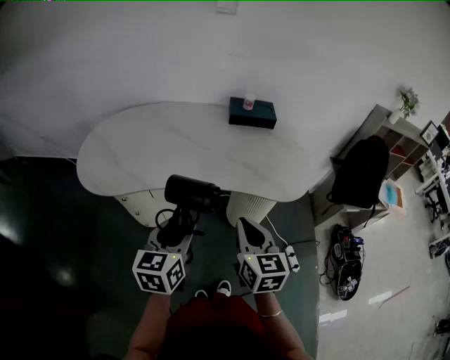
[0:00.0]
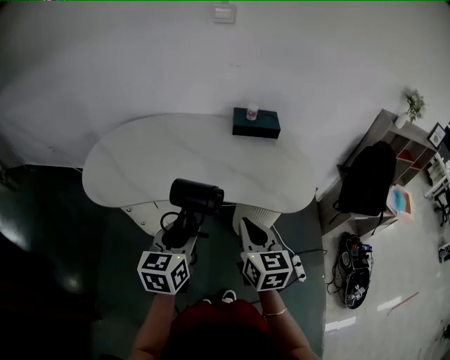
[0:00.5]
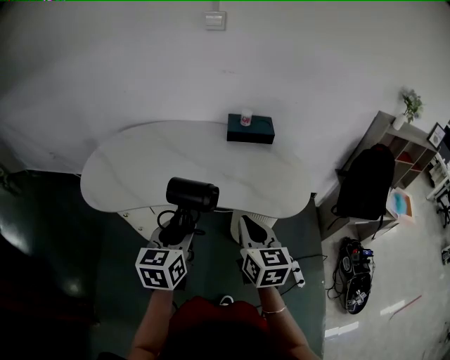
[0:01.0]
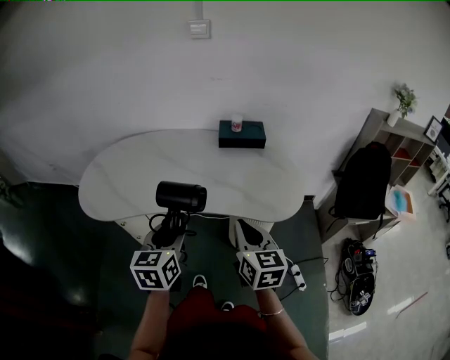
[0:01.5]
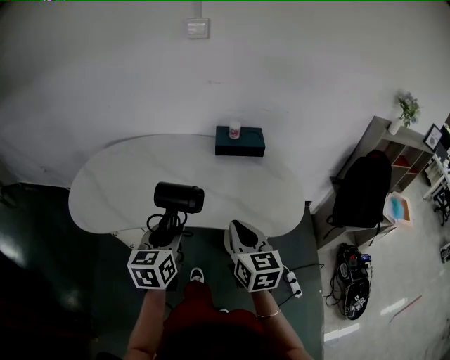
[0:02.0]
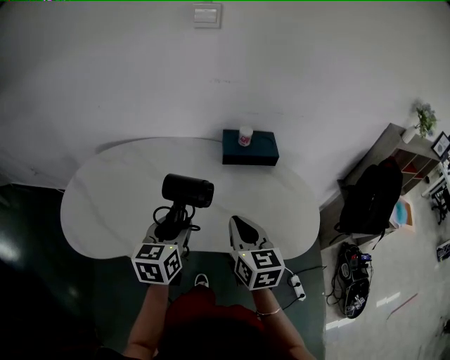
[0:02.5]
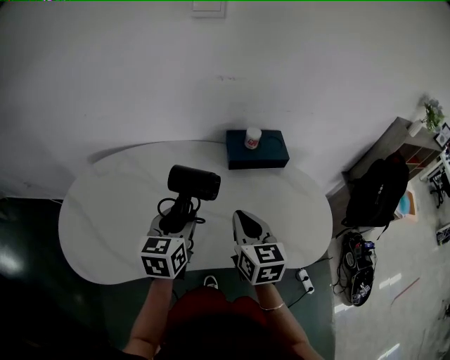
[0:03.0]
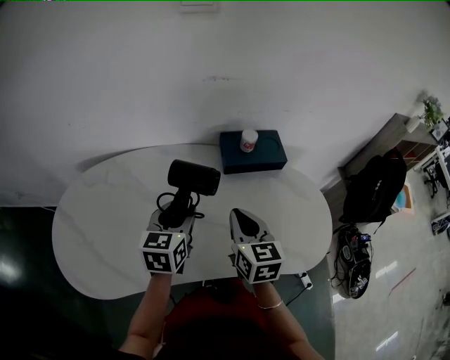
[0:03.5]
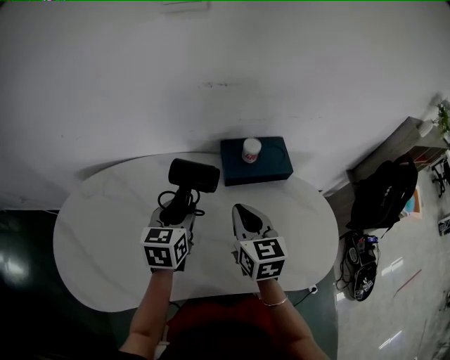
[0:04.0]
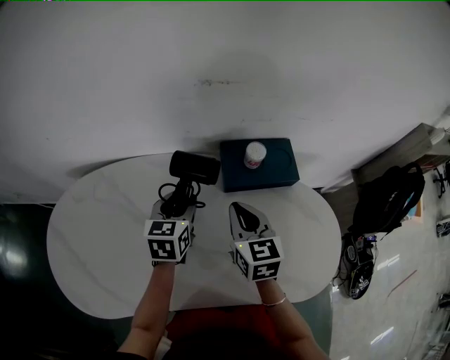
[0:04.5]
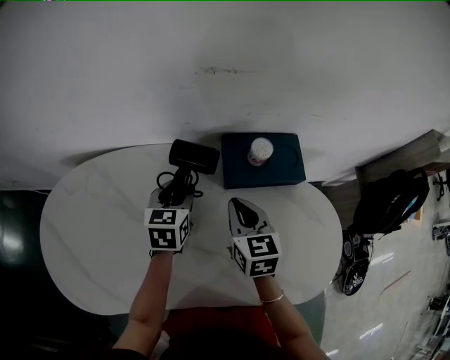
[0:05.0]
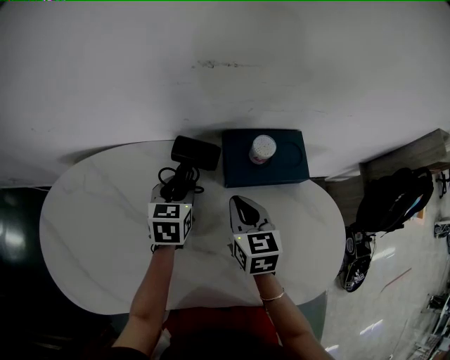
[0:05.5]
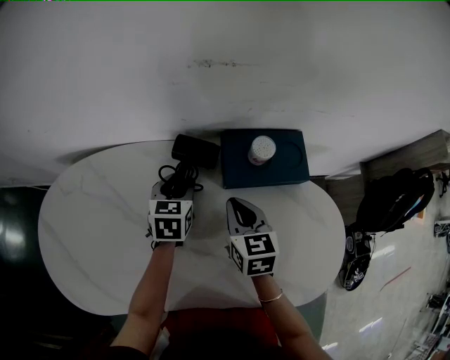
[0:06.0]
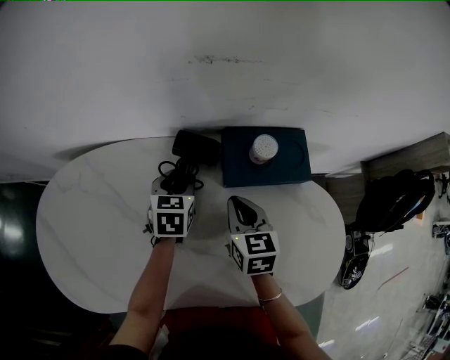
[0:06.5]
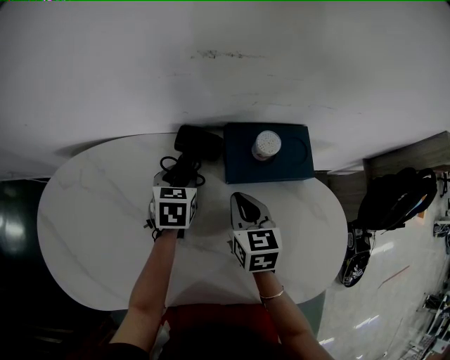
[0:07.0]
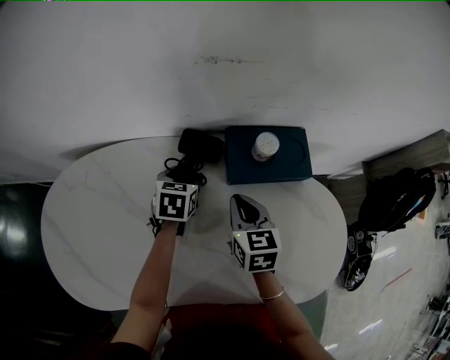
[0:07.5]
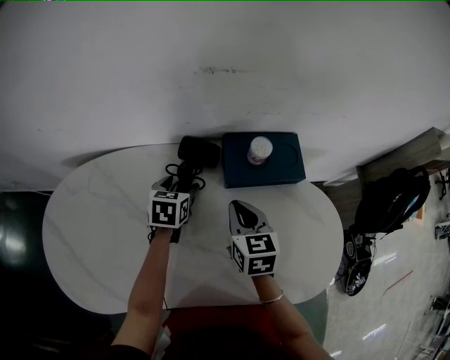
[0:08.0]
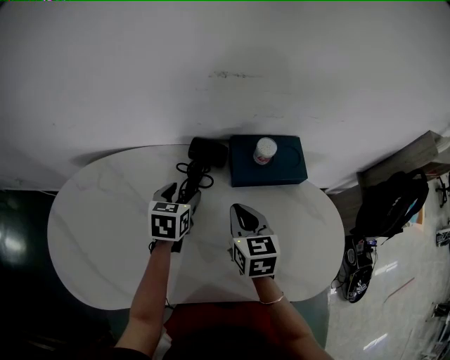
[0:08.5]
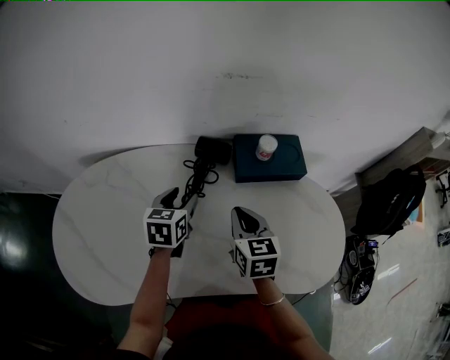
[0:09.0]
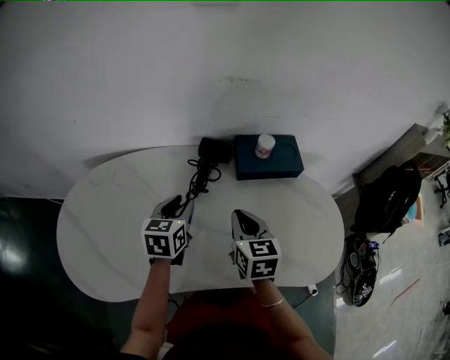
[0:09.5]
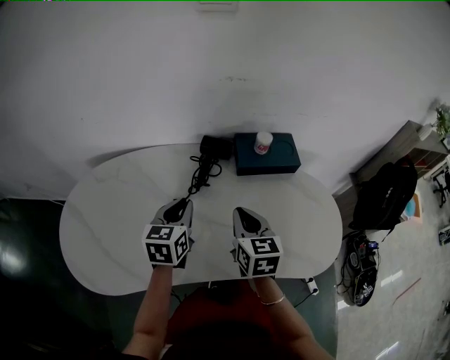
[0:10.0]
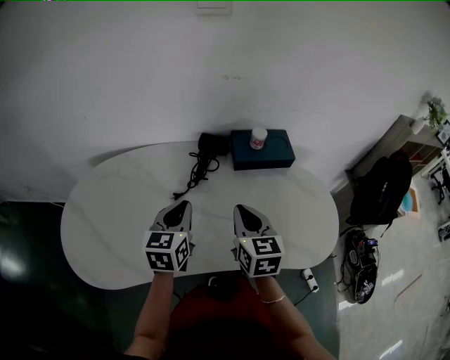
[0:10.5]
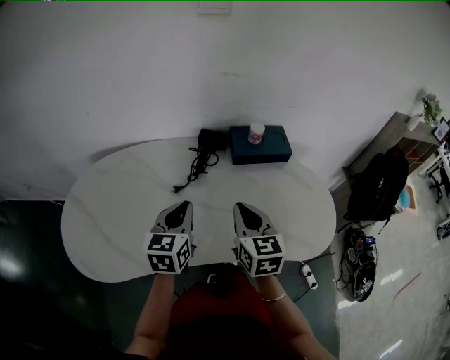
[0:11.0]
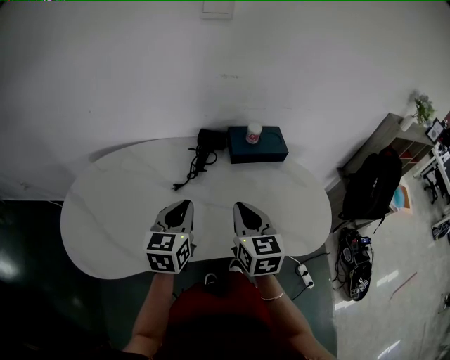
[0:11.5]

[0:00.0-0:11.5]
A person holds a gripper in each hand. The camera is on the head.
0:00.0 to 0:02.0: The grippers both shift forward and to the right by some 15 cm.
0:02.0 to 0:04.0: Both grippers travel together forward, roughly 35 cm.
0:04.0 to 0:06.0: The left gripper travels forward and downward by some 15 cm. Meanwhile the right gripper goes about 15 cm downward and forward.
0:06.0 to 0:07.5: The grippers stay close to where they were, moving slightly.
0:07.5 to 0:09.5: Both grippers move backward and upward, roughly 15 cm. The left gripper closes.
0:09.5 to 0:11.5: The two grippers go some 15 cm backward and upward. The left gripper closes up.

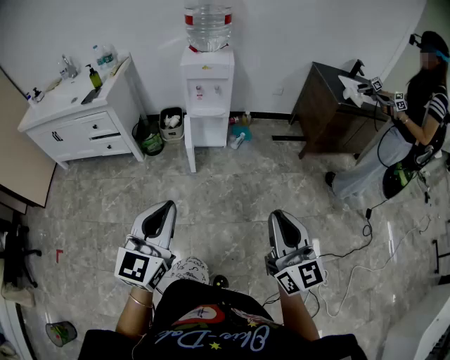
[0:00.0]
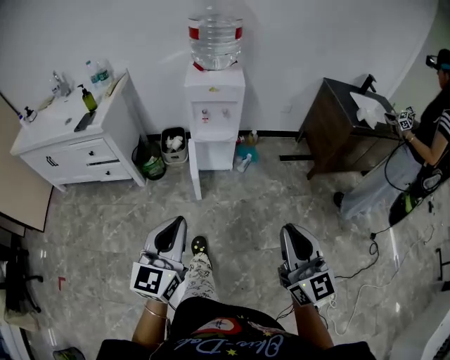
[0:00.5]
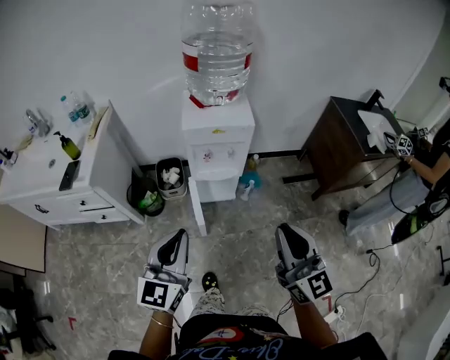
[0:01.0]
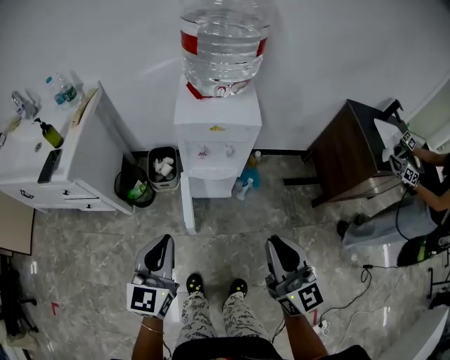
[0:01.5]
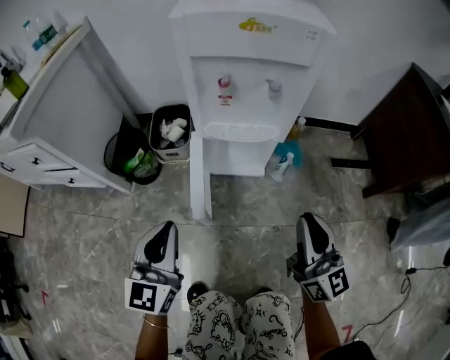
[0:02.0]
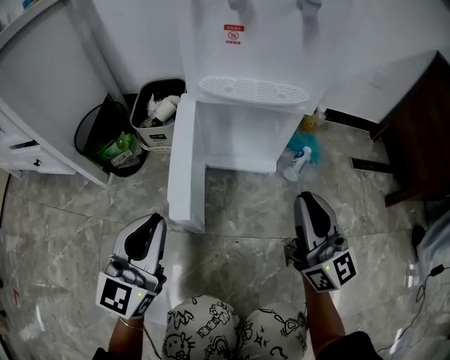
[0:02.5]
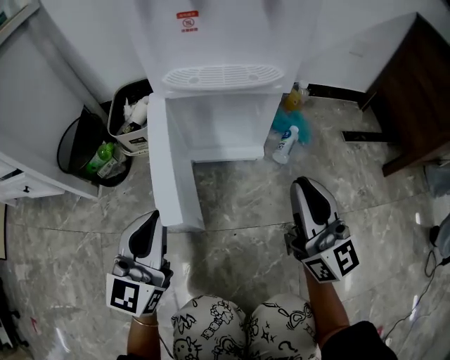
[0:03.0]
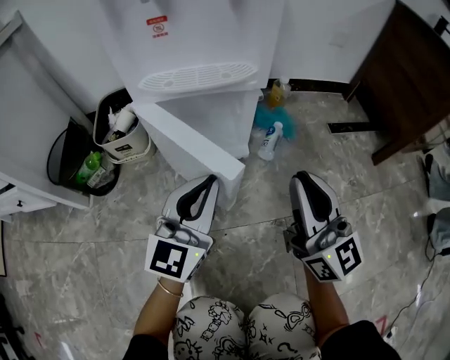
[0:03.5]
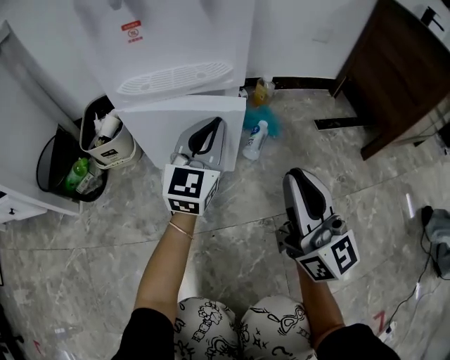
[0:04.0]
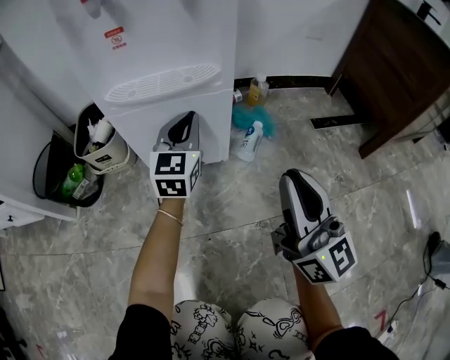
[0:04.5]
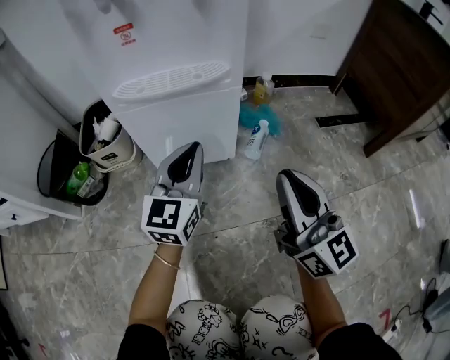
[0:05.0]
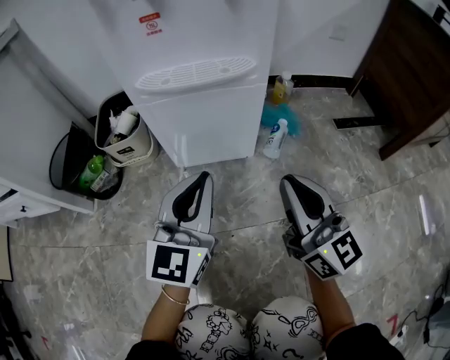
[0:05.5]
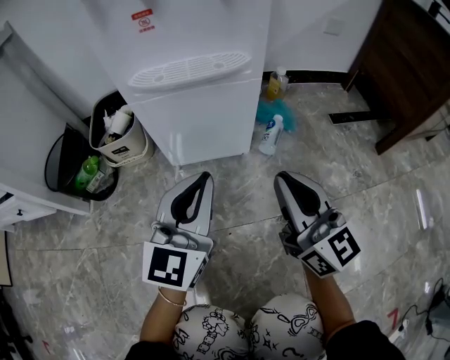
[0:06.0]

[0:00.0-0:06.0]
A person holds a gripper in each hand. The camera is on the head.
0:00.0 to 0:02.0: Both grippers are carried forward, about 60 cm. The two grippers go approximately 40 cm downward.
0:02.0 to 0:04.0: The left gripper heads to the right, forward and downward, covering some 40 cm, and swivels approximately 20 degrees; the right gripper shifts roughly 20 cm downward.
0:04.0 to 0:06.0: The left gripper moves backward and to the left, approximately 15 cm, while the right gripper moves to the left, approximately 5 cm.

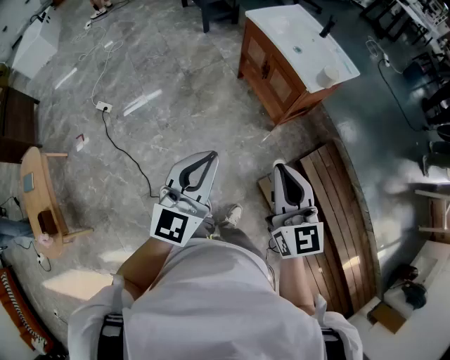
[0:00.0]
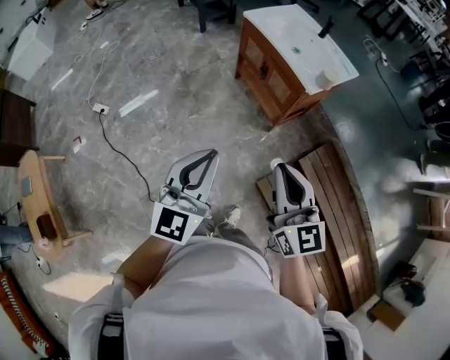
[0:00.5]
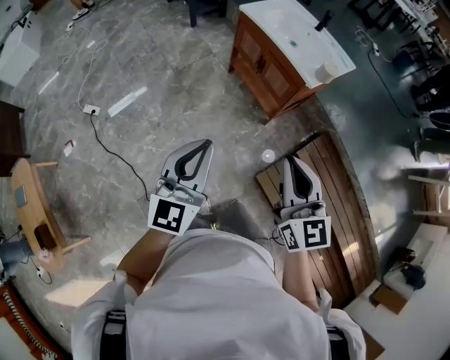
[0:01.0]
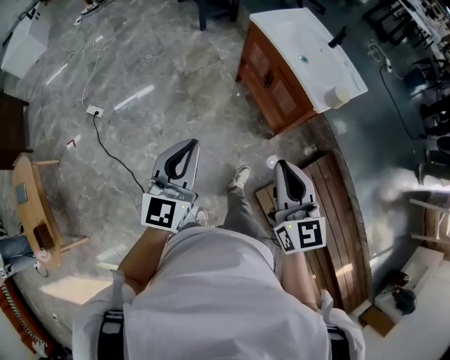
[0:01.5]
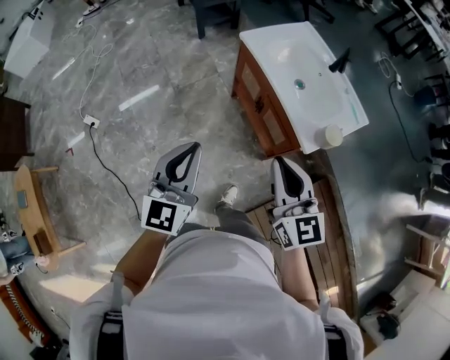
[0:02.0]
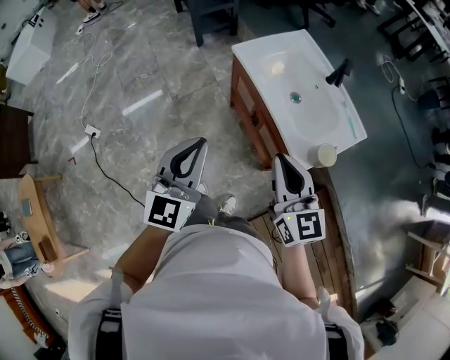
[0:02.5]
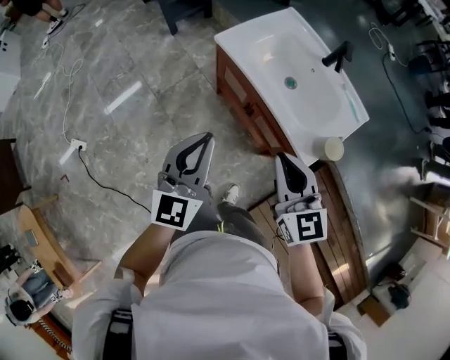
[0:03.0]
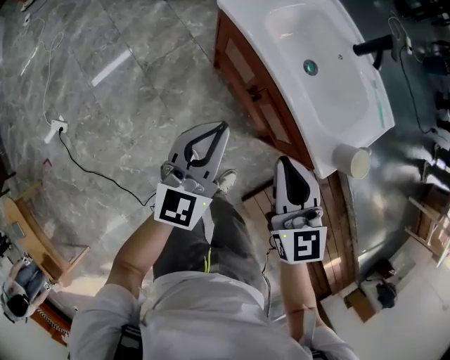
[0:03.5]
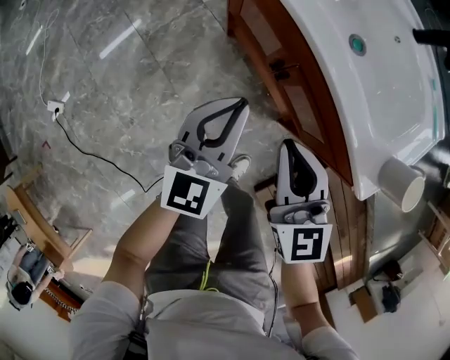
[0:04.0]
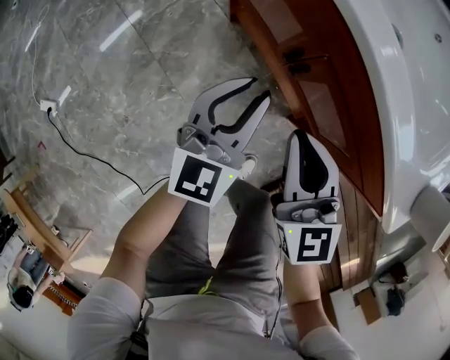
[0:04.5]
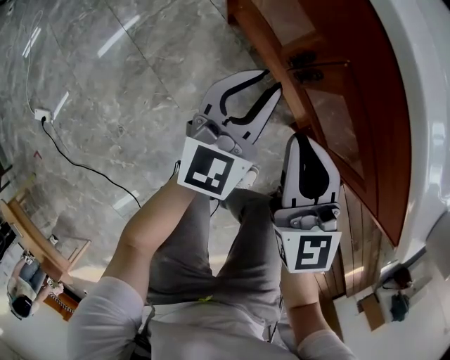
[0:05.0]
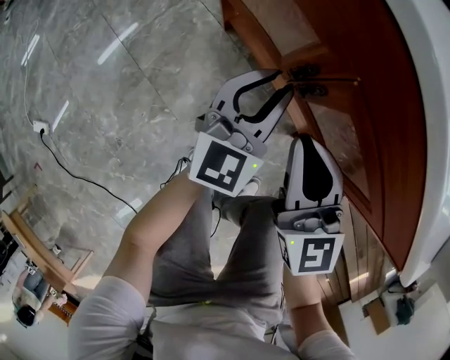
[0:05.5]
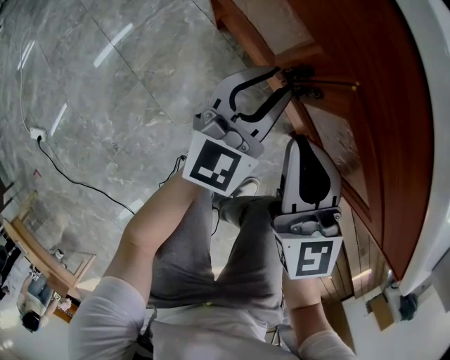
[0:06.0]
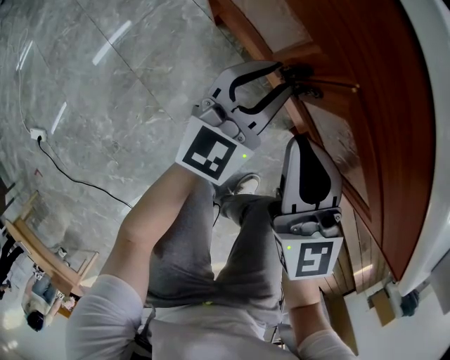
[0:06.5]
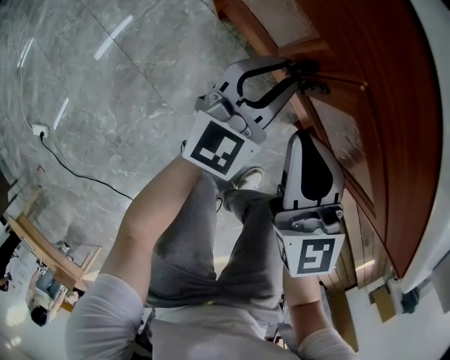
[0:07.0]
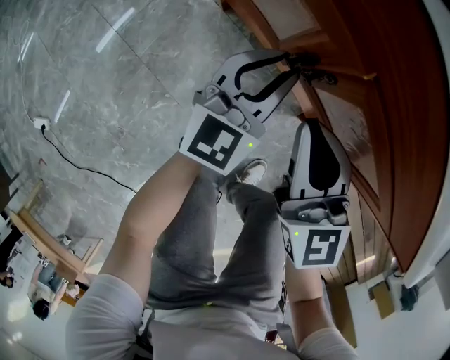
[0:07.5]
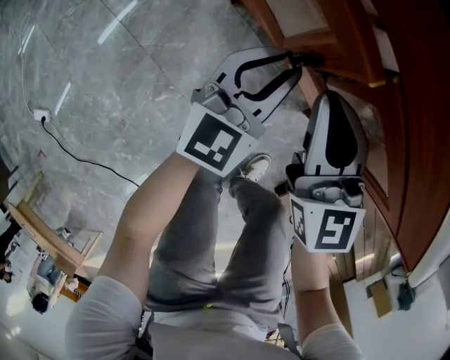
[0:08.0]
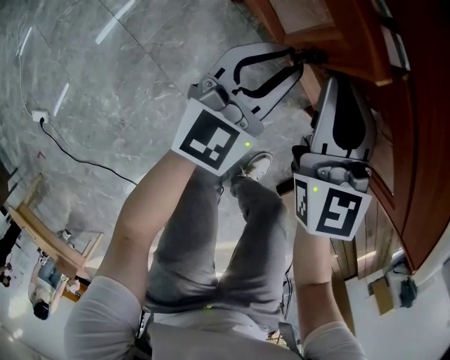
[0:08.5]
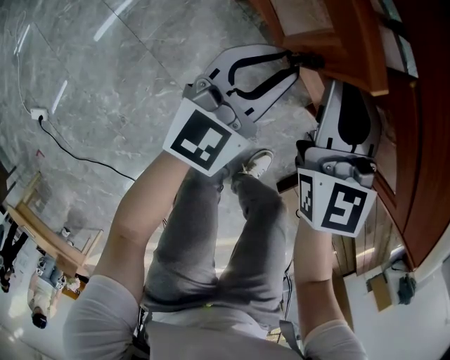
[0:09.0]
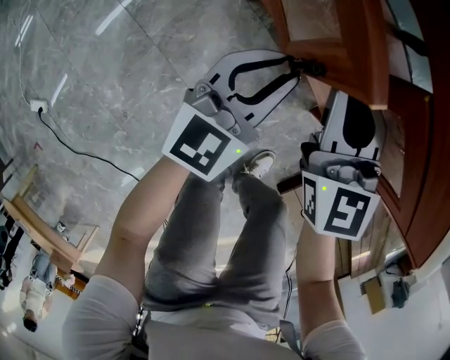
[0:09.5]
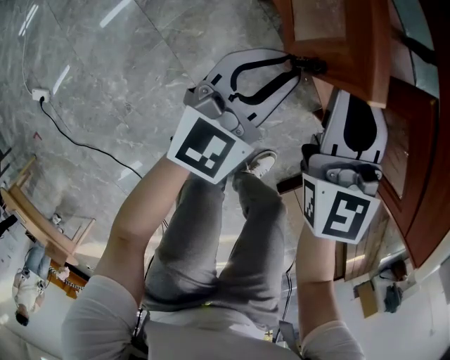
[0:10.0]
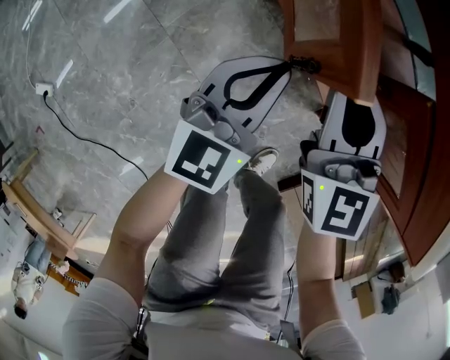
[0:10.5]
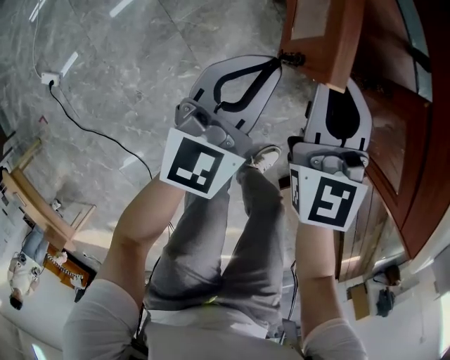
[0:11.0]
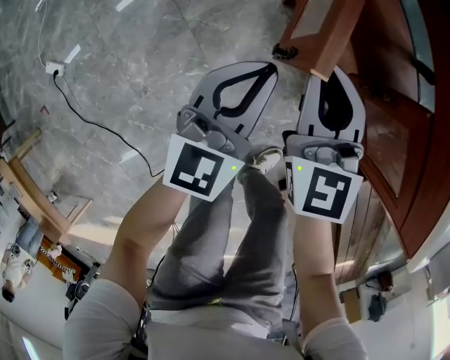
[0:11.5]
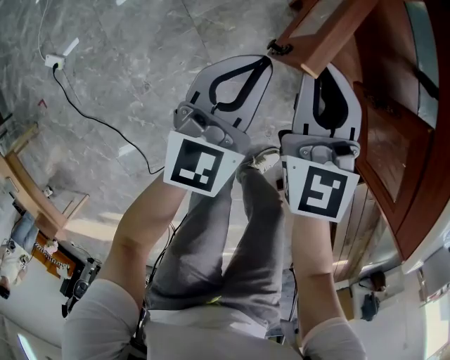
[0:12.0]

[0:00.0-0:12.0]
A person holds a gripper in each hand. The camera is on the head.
0:00.0 to 0:02.0: Both grippers move forward, approximately 35 cm.
0:02.0 to 0:04.0: The two grippers go some 40 cm downward and forward.
0:04.0 to 0:06.0: The right gripper travels downward by roughly 20 cm; the left gripper travels downward and forward by approximately 25 cm, and opens.
0:06.0 to 0:08.0: The grippers stay close to where they were, moving slightly.
0:08.0 to 0:10.0: The grippers both shift to the left by roughly 5 cm.
0:10.0 to 0:12.0: The left gripper goes approximately 15 cm to the left and upward, and turns by some 20 degrees, while the right gripper heads to the left, covering about 15 cm.
